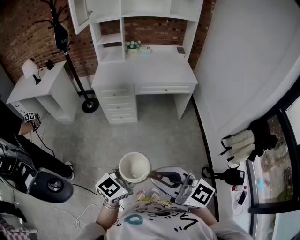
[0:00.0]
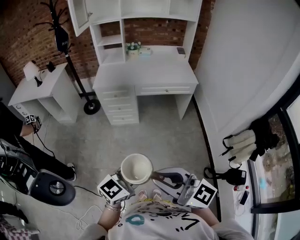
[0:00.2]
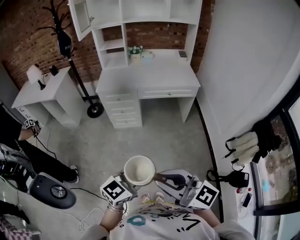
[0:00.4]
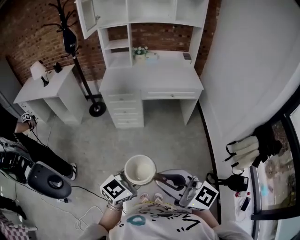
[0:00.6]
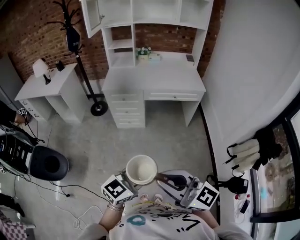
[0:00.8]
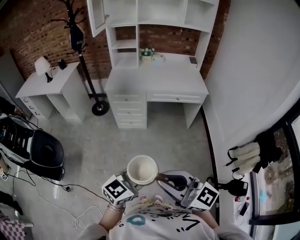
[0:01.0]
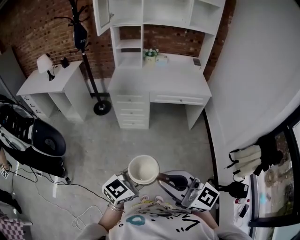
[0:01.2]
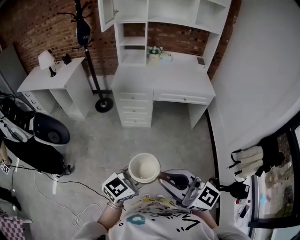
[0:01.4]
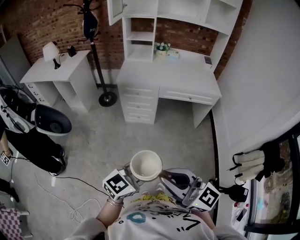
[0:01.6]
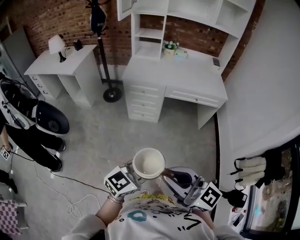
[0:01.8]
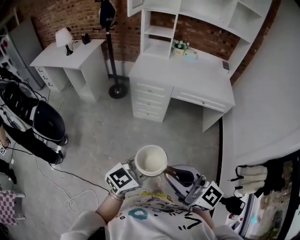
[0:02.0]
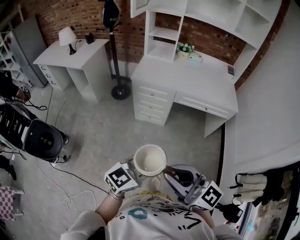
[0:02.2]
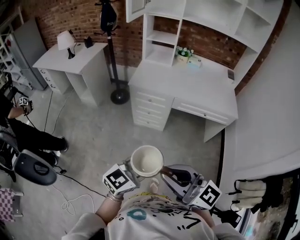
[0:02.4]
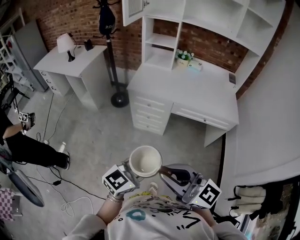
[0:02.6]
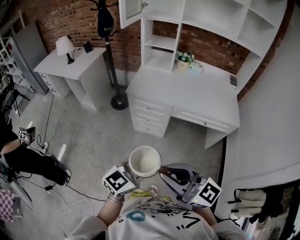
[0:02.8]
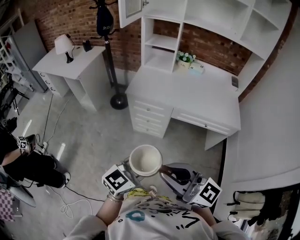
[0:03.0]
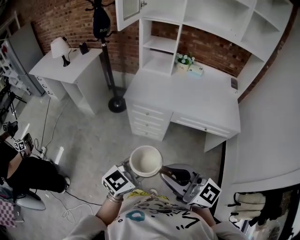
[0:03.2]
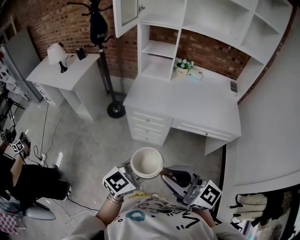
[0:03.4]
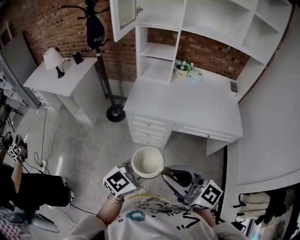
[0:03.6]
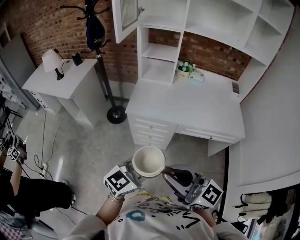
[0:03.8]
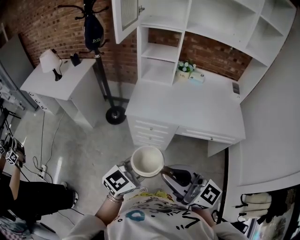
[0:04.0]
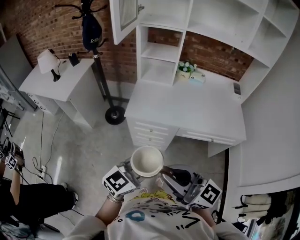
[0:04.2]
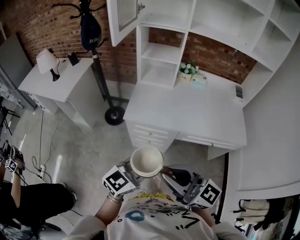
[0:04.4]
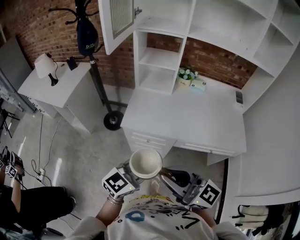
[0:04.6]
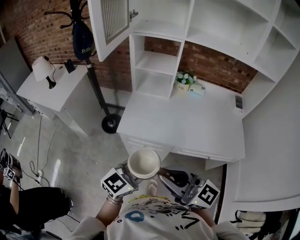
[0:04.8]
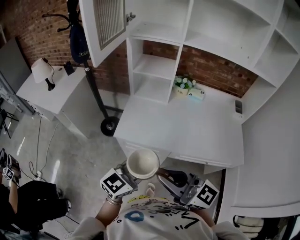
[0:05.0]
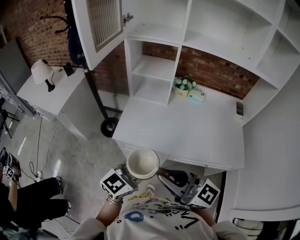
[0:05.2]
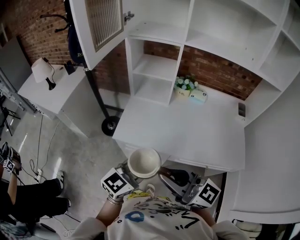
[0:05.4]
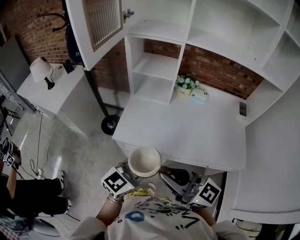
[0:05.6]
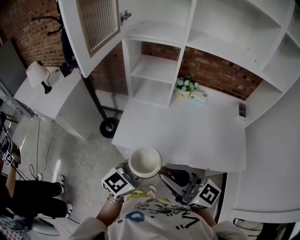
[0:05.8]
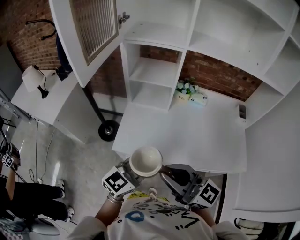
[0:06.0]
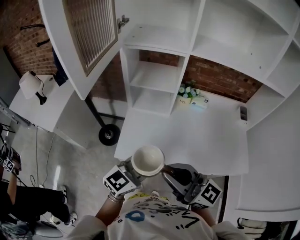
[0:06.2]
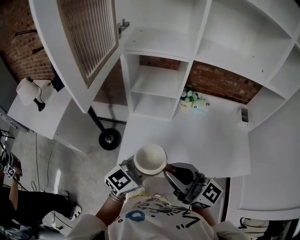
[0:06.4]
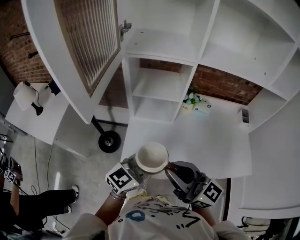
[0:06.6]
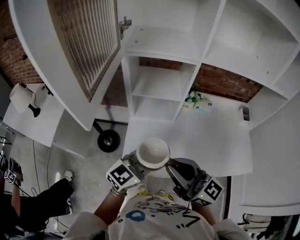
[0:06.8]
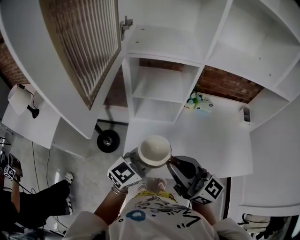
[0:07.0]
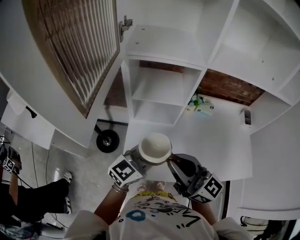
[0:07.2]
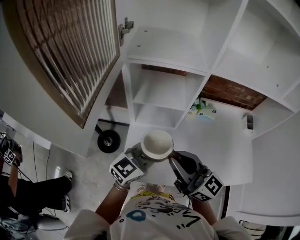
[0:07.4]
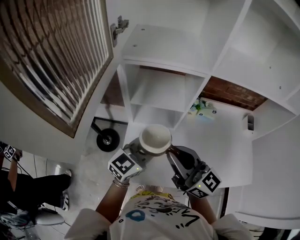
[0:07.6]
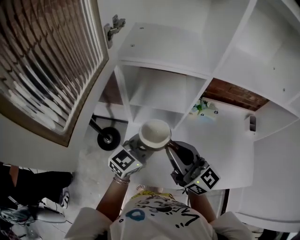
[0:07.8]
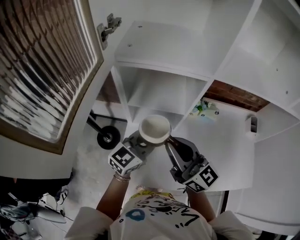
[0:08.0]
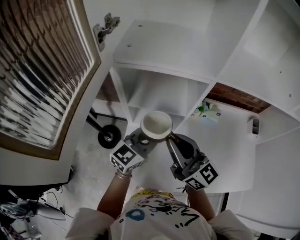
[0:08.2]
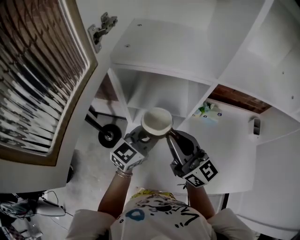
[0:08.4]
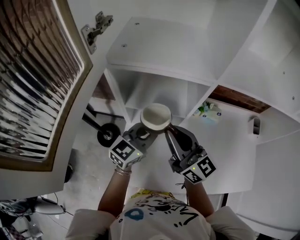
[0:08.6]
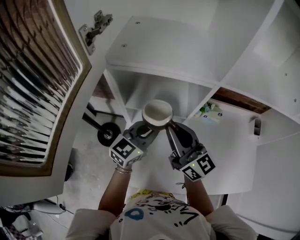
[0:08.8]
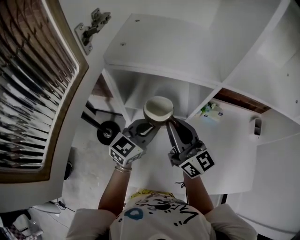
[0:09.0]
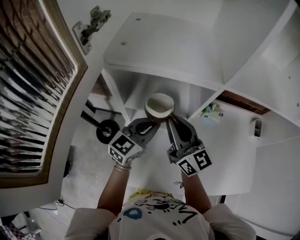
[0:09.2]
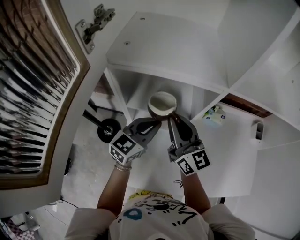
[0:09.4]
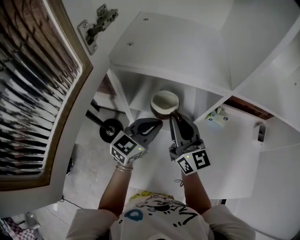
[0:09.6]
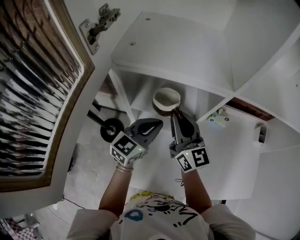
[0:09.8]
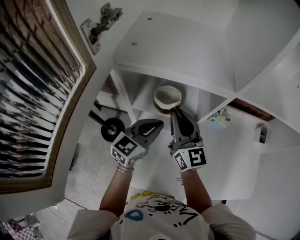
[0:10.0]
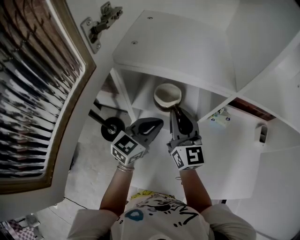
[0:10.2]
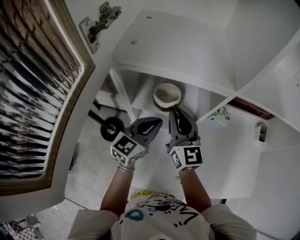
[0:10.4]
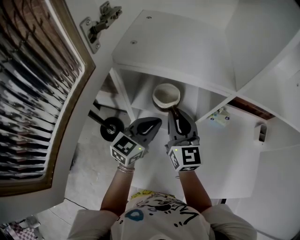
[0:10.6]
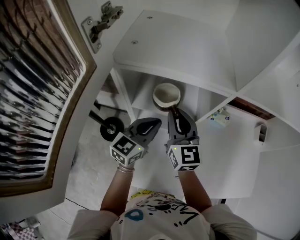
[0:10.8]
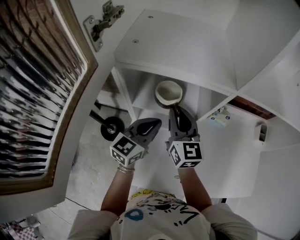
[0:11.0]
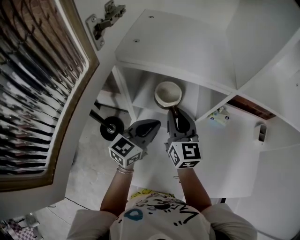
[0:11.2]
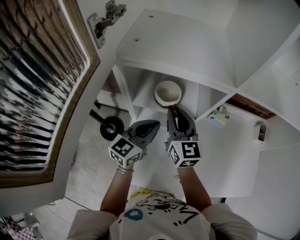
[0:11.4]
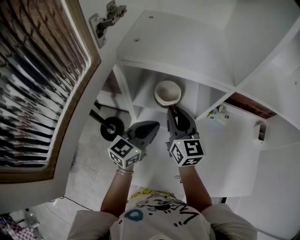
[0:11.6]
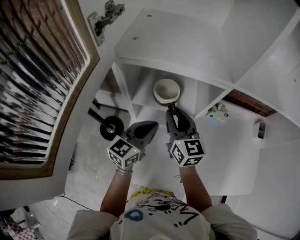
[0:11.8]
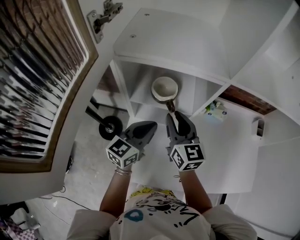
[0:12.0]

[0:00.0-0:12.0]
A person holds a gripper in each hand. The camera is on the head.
0:00.0 to 0:01.6: The grippers both shift to the left by approximately 5 cm.
0:01.6 to 0:03.0: Both grippers travel together forward, about 25 cm.
0:03.0 to 0:04.4: Both grippers move forward, approximately 20 cm.
0:04.4 to 0:06.0: The grippers both shift forward by some 20 cm.
0:06.0 to 0:07.6: Both grippers move forward, roughly 25 cm.
0:07.6 to 0:09.0: The two grippers go some 15 cm forward.
0:09.0 to 0:10.4: The right gripper goes about 5 cm forward, and changes its angle by about 20 degrees.
0:10.4 to 0:12.0: The grippers make only small movements.

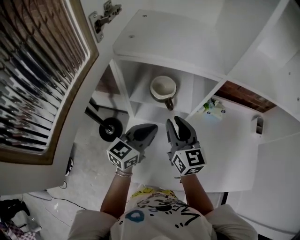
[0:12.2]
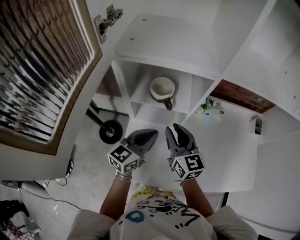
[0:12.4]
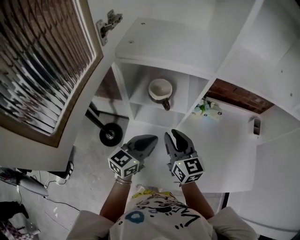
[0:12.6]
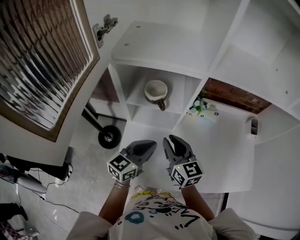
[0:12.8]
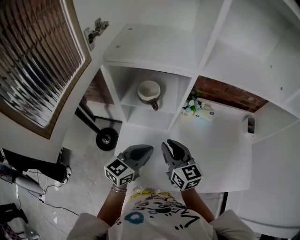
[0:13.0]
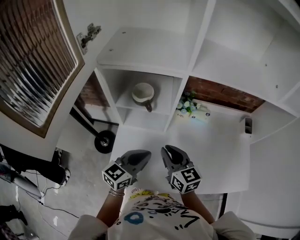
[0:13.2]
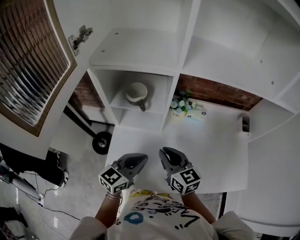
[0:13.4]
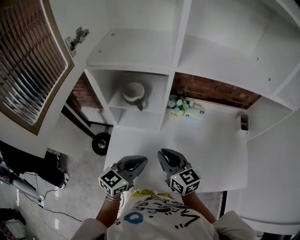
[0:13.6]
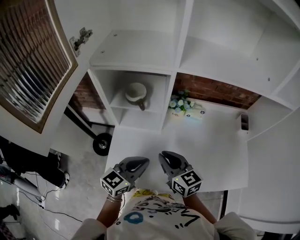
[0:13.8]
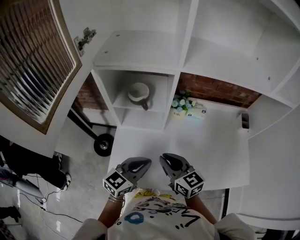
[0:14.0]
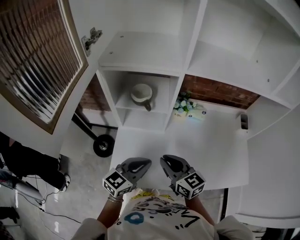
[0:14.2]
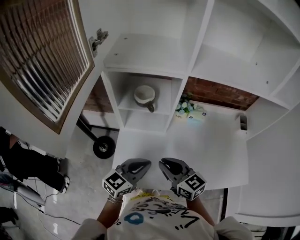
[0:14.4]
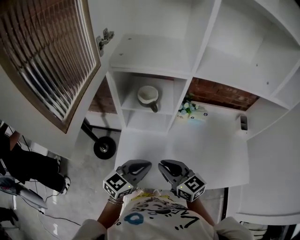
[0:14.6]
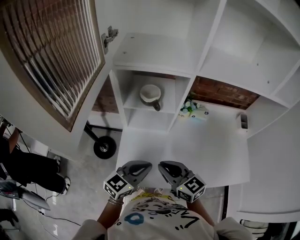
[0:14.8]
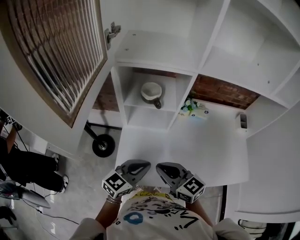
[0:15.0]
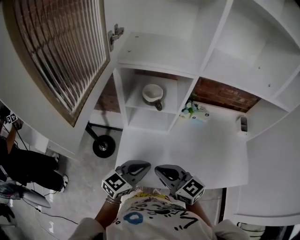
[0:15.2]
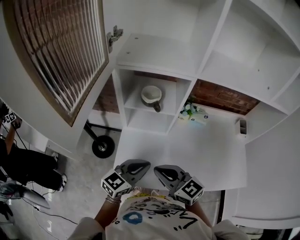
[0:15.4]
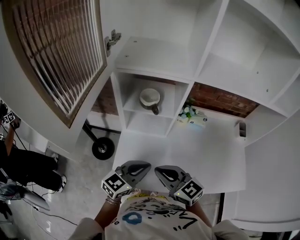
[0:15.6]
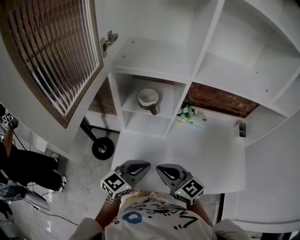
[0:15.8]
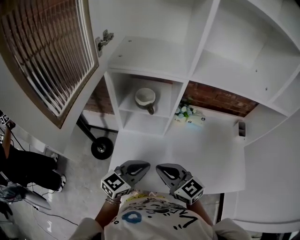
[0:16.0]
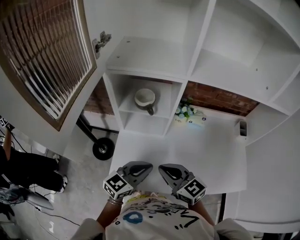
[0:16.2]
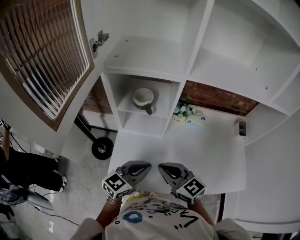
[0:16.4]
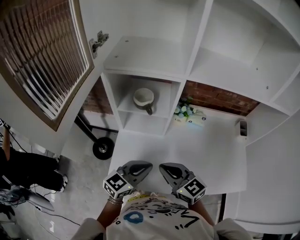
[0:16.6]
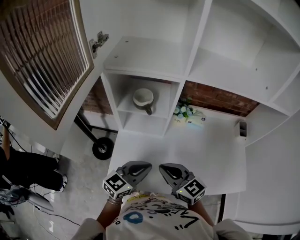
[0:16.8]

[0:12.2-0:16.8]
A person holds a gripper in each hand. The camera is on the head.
0:12.2 to 0:13.8: Both grippers travel together backward and to the right, roughly 15 cm.
0:13.8 to 0:15.2: The left gripper travels to the left by about 5 cm. The right gripper goes roughly 15 cm to the left and backward.
0:15.2 to 0:16.8: Both grippers travel together to the right, some 5 cm.

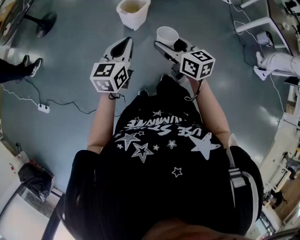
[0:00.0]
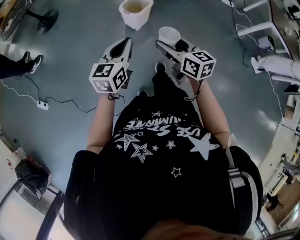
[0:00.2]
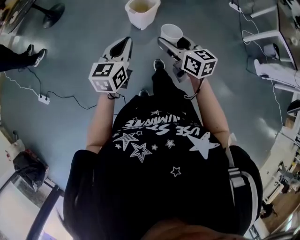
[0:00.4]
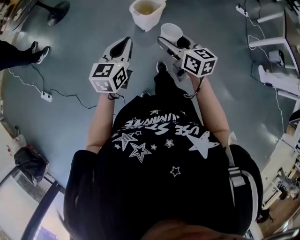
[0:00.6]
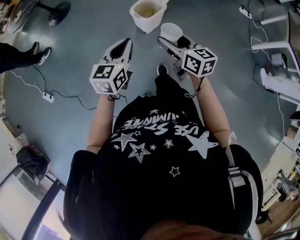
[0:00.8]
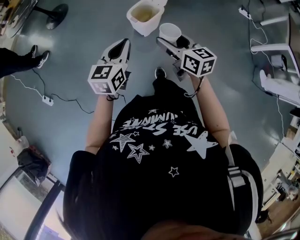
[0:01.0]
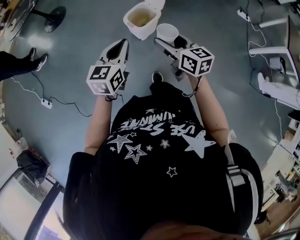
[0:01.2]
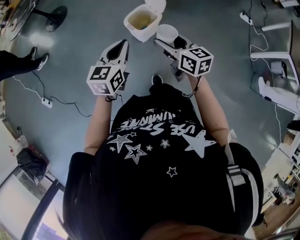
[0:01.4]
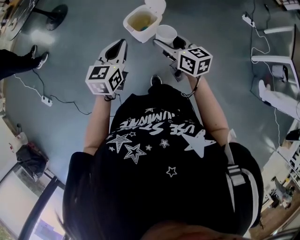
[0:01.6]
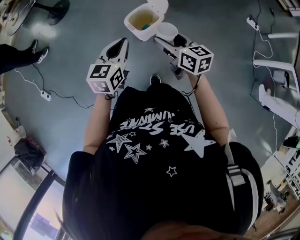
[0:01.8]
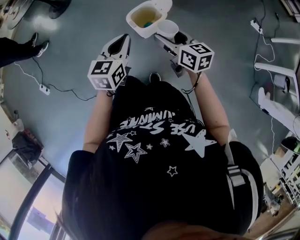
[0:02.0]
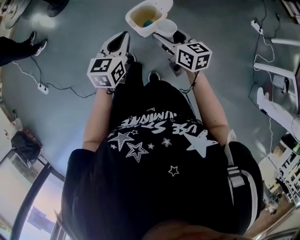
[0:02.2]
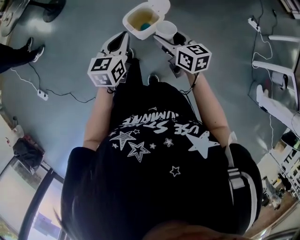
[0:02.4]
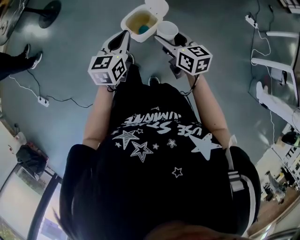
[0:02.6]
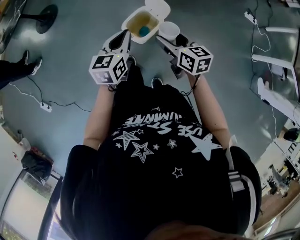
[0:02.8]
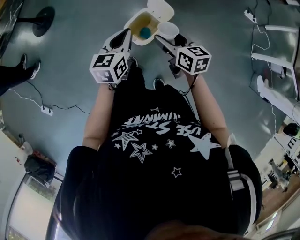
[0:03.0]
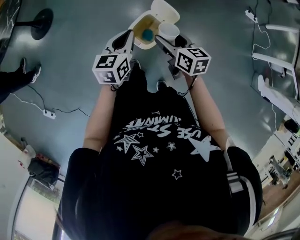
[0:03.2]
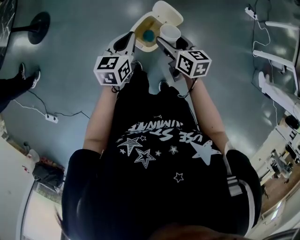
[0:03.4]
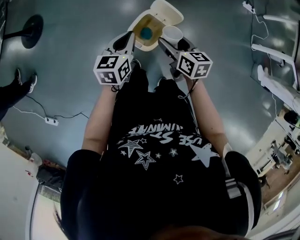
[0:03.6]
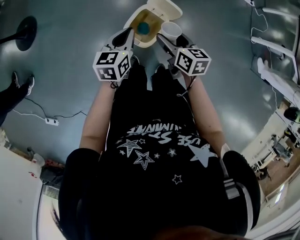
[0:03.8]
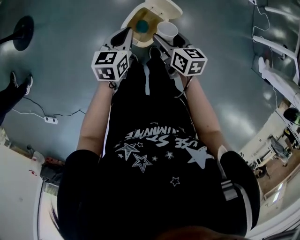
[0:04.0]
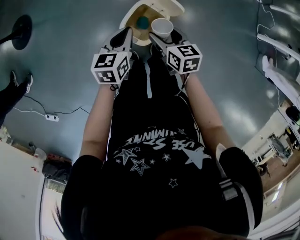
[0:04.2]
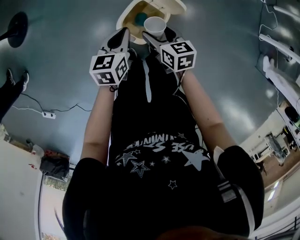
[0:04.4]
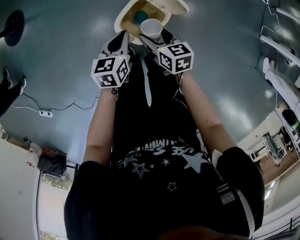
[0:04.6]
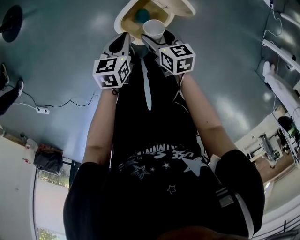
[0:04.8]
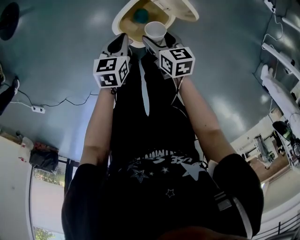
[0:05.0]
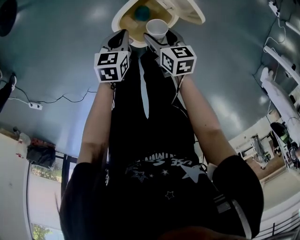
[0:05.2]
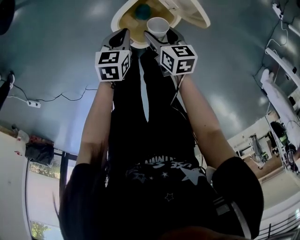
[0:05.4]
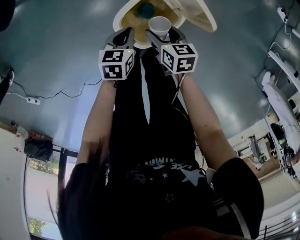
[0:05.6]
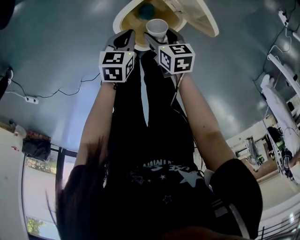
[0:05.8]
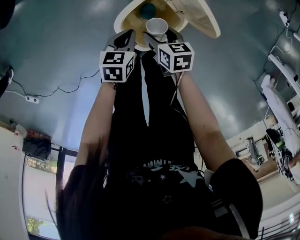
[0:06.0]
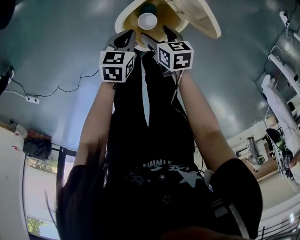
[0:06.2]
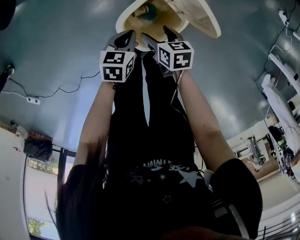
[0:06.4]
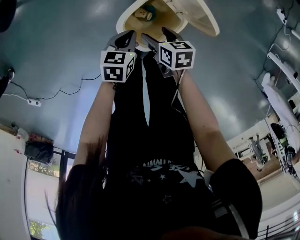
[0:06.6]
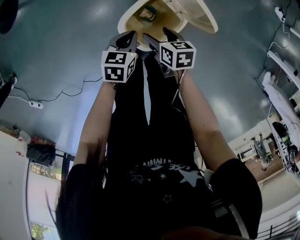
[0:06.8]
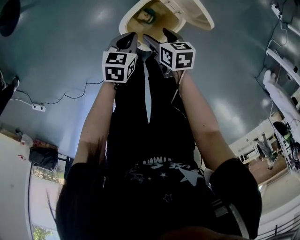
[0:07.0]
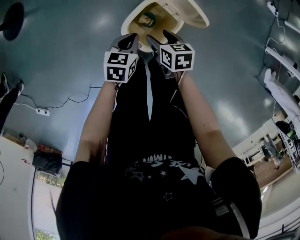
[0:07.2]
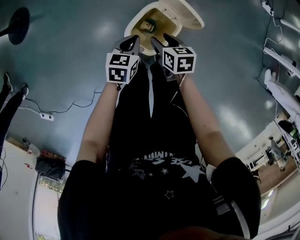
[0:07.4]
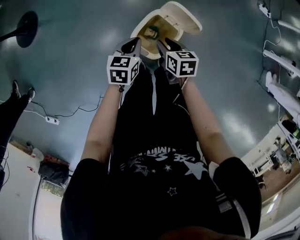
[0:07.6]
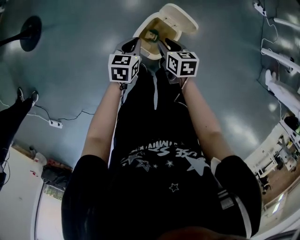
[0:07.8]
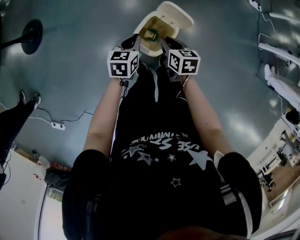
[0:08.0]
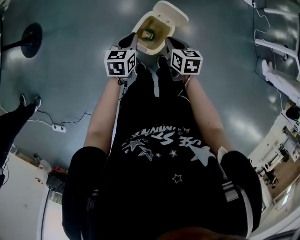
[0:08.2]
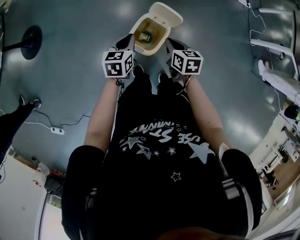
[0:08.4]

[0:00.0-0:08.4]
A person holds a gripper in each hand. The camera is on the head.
0:00.0 to 0:01.4: Both grippers travel together forward, roughly 20 cm.
0:01.4 to 0:02.8: Both grippers travel together forward, roughly 20 cm.
0:02.8 to 0:04.2: The left gripper shifts roughly 20 cm forward and downward. Meanwhile the right gripper heads downward and forward, covering some 20 cm.
0:04.2 to 0:05.6: Both grippers travel together downward, some 25 cm.
0:05.6 to 0:07.0: The grippers move only a little.
0:07.0 to 0:08.4: The grippers both shift upward by about 20 cm. The right gripper swivels some 20 degrees, and closes up.
